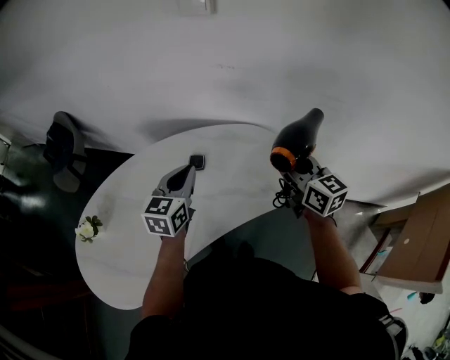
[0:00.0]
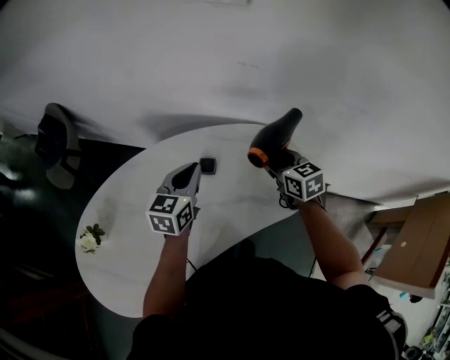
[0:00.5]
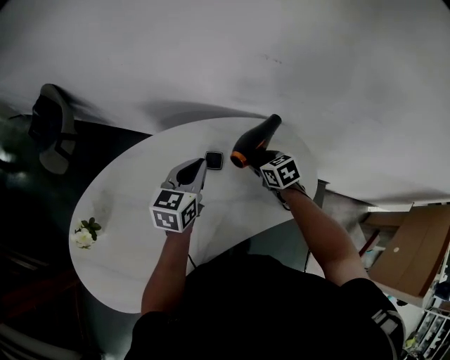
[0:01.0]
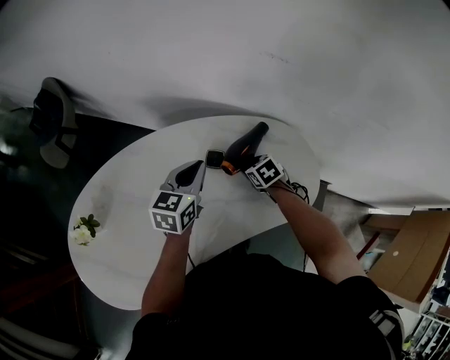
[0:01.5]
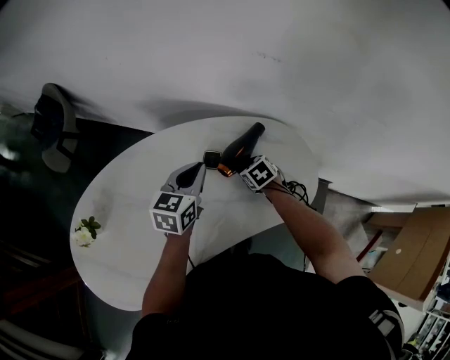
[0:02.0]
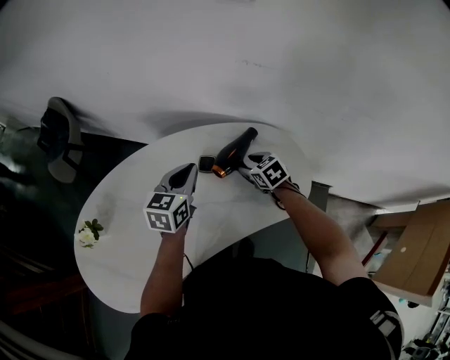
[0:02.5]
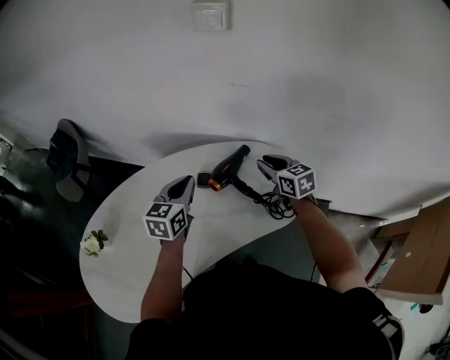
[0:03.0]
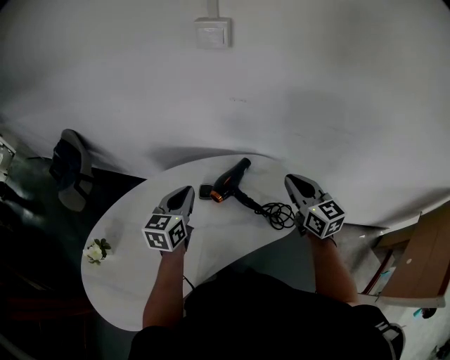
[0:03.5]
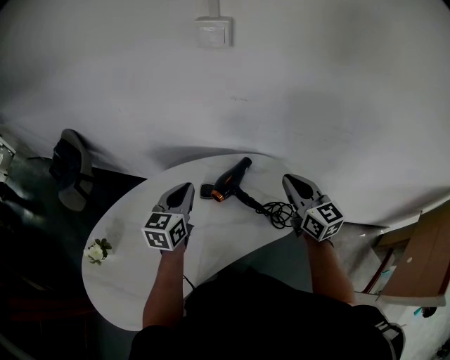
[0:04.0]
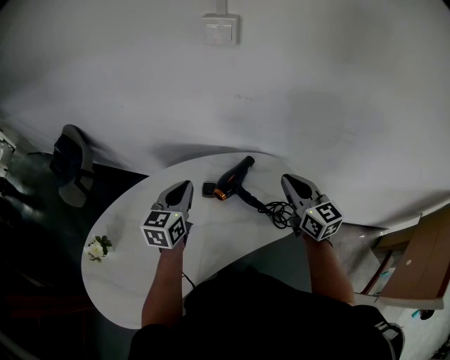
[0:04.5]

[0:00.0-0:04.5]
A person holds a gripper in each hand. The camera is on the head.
0:00.0 to 0:02.0: The right gripper is displaced downward and to the left by roughly 35 cm, and angles its fingers downward, by about 50 degrees; the left gripper heads downward and forward, covering some 10 cm.
0:02.0 to 0:04.5: The right gripper is displaced upward by roughly 30 cm, points its fingers about 60 degrees further upward, and closes; the left gripper is displaced upward by some 10 cm.

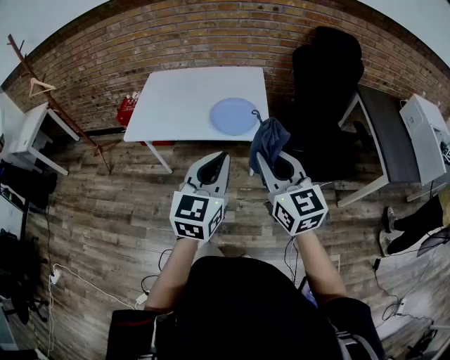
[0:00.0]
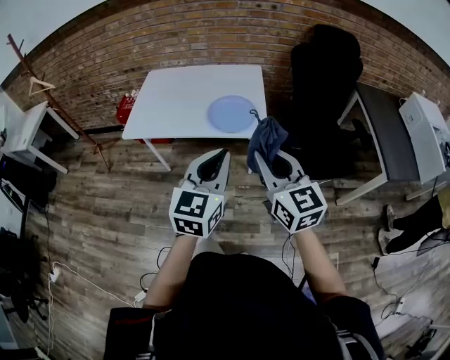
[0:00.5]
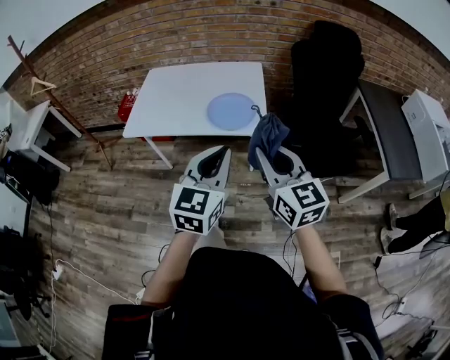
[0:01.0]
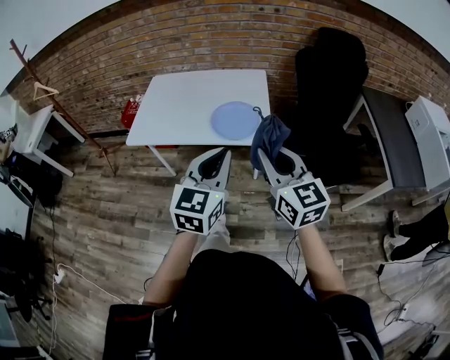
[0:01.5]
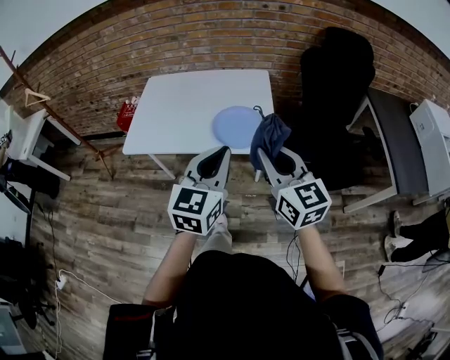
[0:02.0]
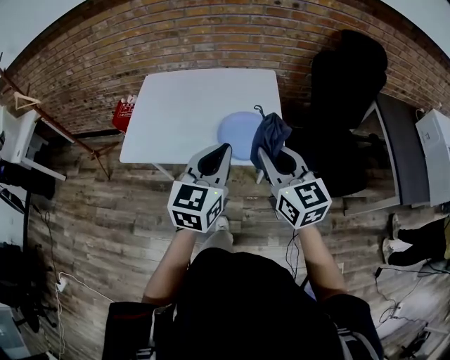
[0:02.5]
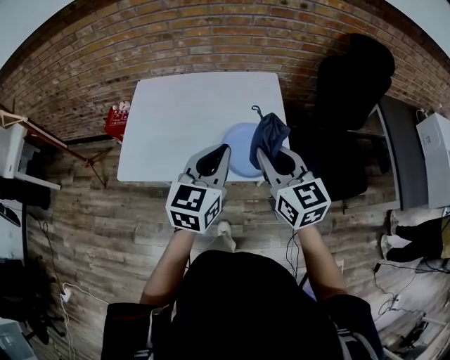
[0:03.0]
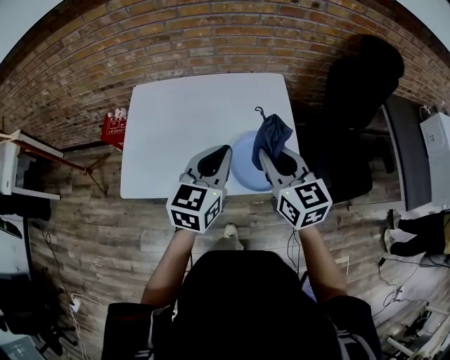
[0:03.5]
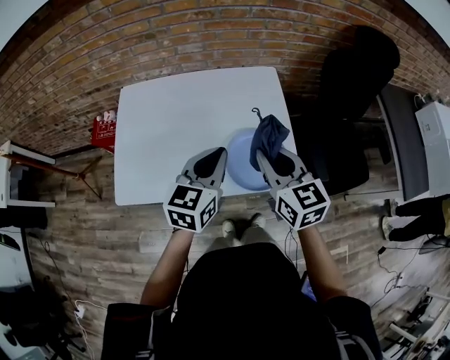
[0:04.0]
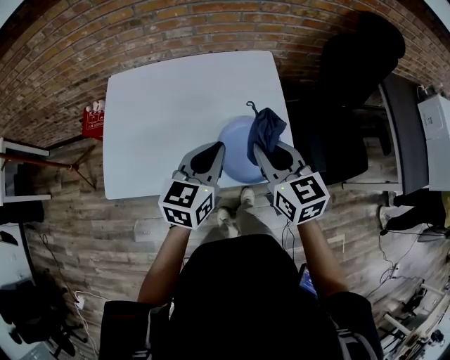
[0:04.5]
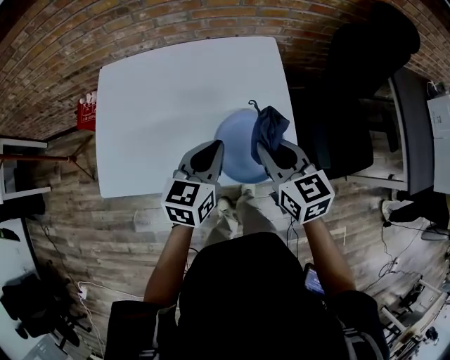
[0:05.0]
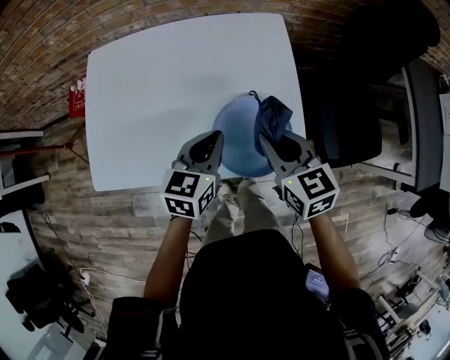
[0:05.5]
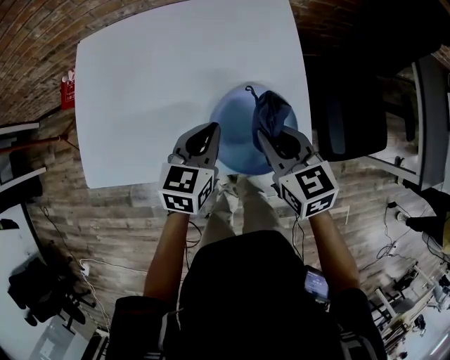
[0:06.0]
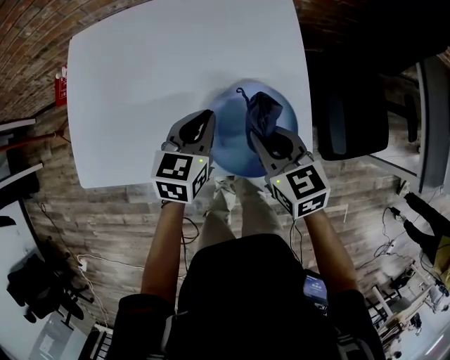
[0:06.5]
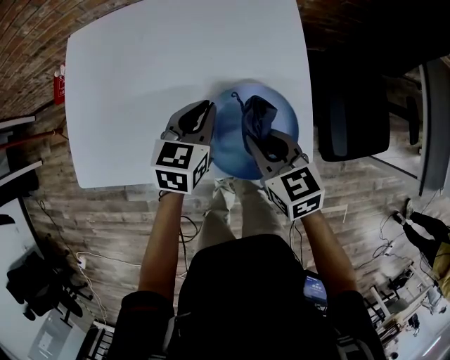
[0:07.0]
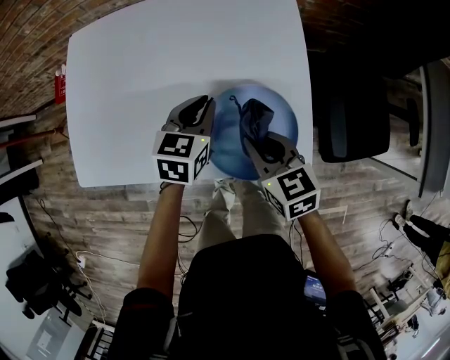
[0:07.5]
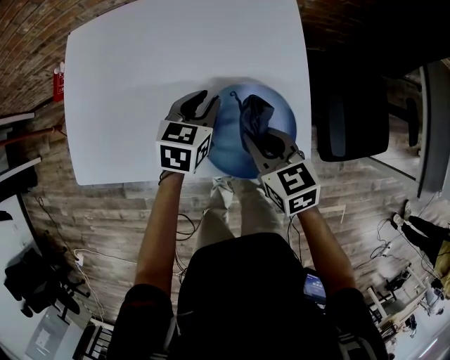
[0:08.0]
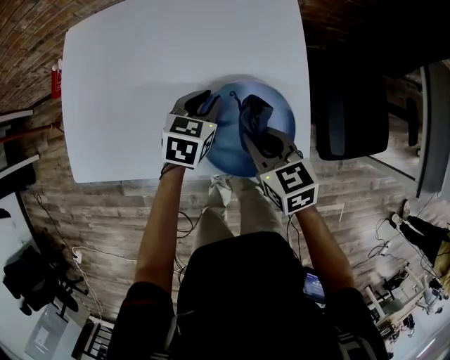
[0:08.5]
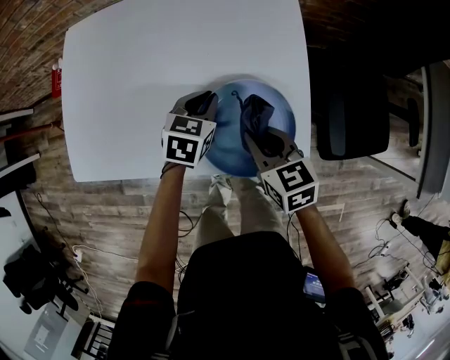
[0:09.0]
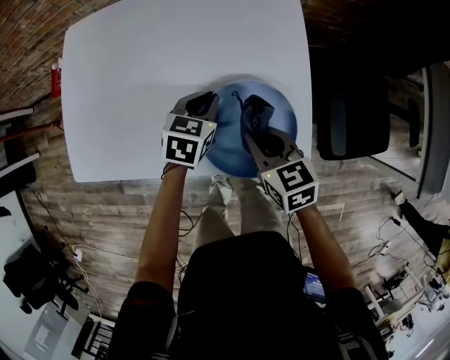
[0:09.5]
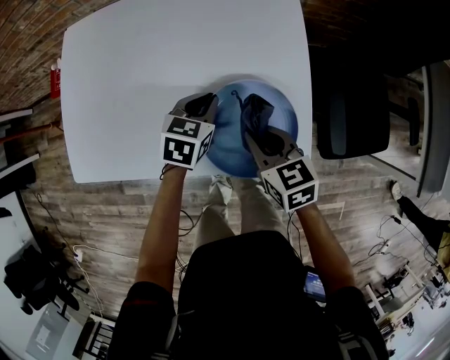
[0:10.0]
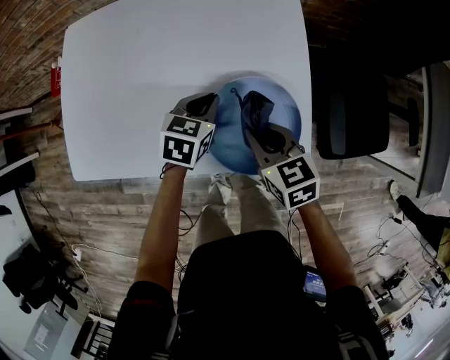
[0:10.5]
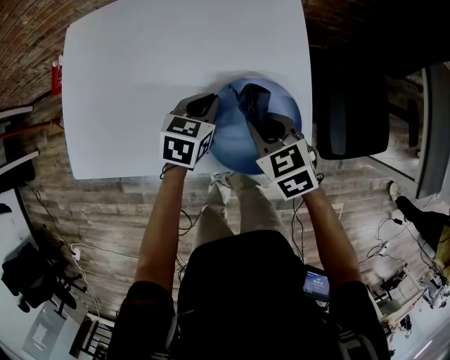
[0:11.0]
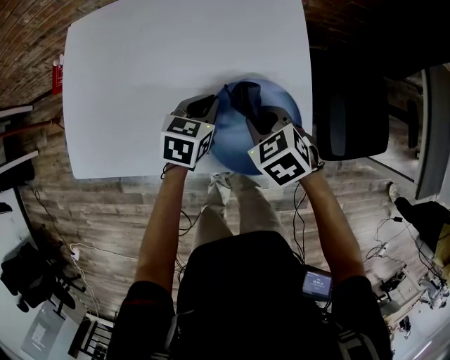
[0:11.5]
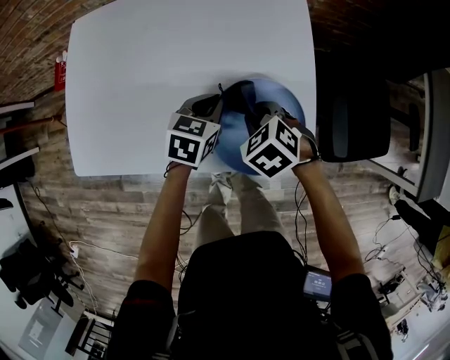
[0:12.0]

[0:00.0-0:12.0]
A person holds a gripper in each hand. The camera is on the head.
0:00.0 to 0:02.0: Both grippers move forward, approximately 10 cm.
0:02.0 to 0:04.0: The two grippers go approximately 30 cm forward and to the left.
0:04.0 to 0:06.0: Both grippers move downward, roughly 20 cm.
0:06.0 to 0:08.0: The left gripper moves forward and downward, about 10 cm, while the right gripper goes roughly 5 cm downward.
0:08.0 to 0:10.0: There are only small adjustments of the grippers.
0:10.0 to 0:12.0: The right gripper swivels some 40 degrees.

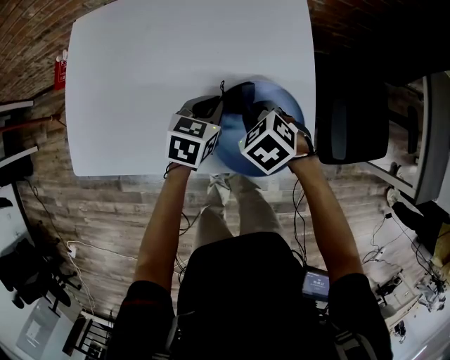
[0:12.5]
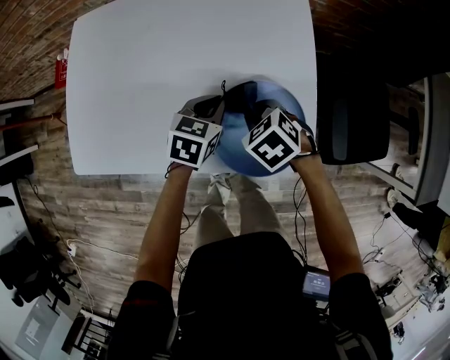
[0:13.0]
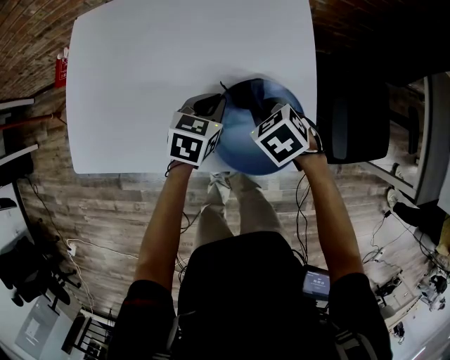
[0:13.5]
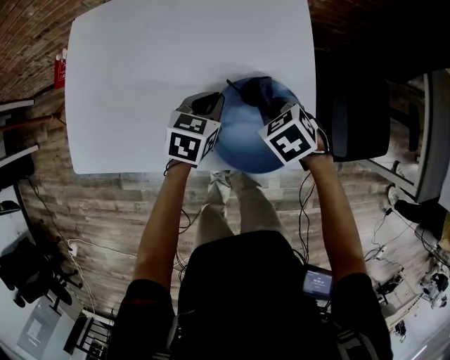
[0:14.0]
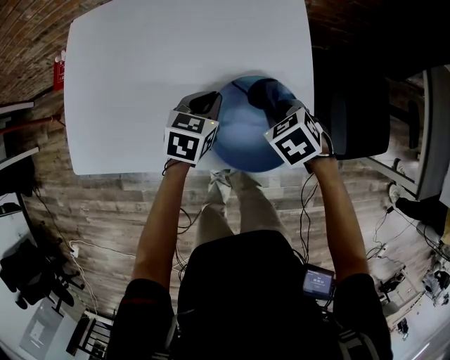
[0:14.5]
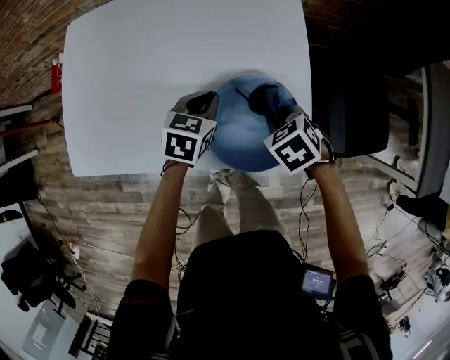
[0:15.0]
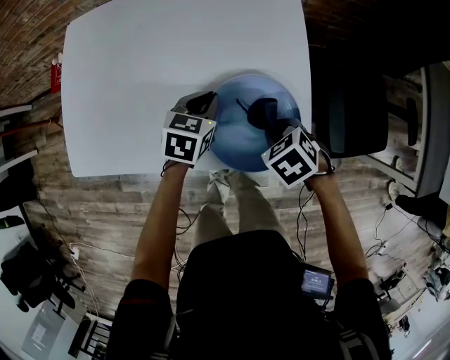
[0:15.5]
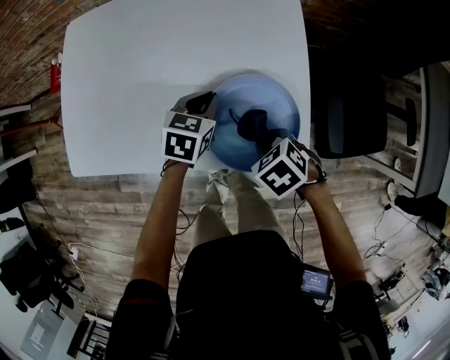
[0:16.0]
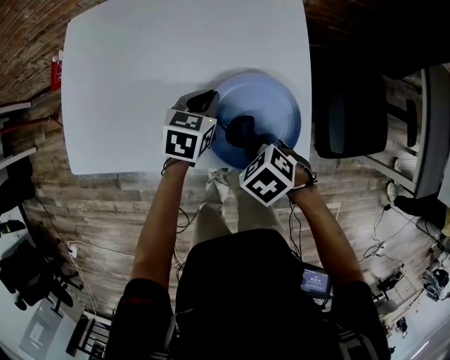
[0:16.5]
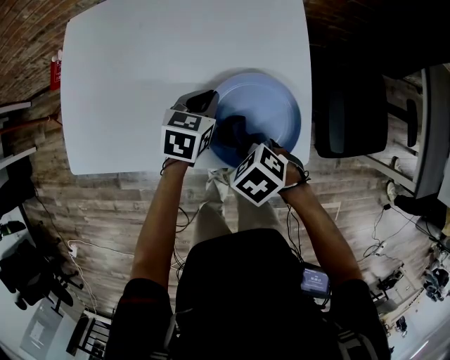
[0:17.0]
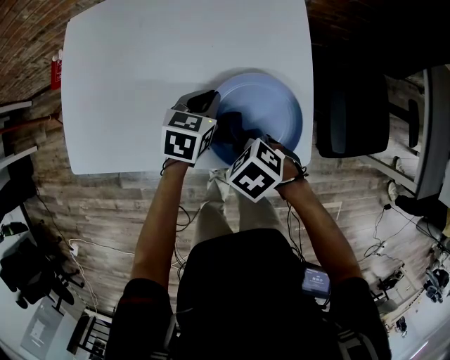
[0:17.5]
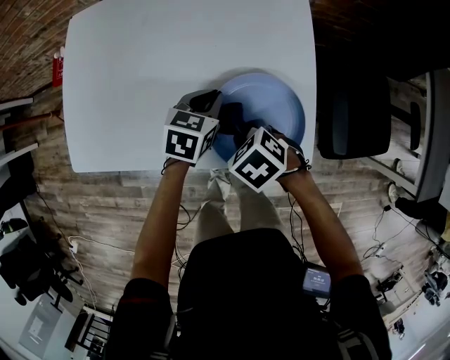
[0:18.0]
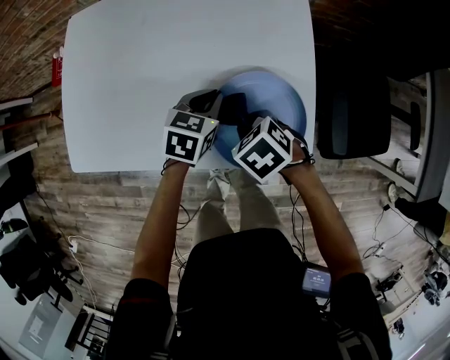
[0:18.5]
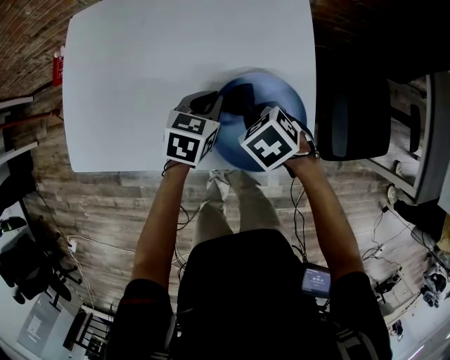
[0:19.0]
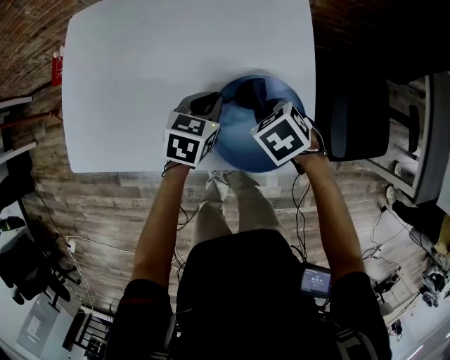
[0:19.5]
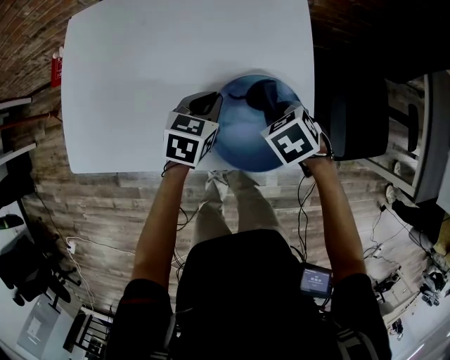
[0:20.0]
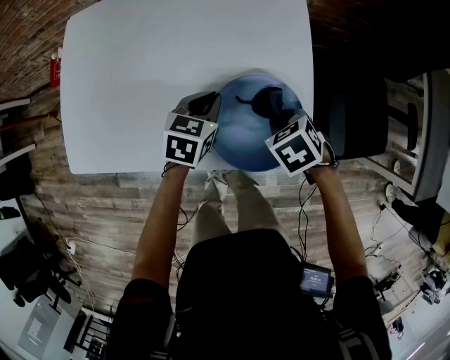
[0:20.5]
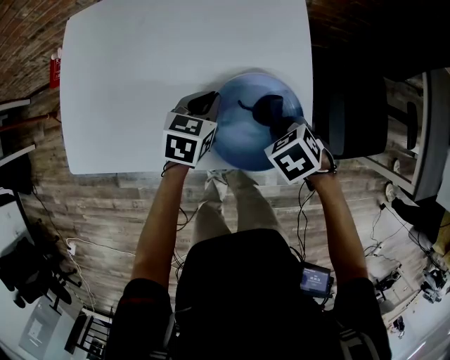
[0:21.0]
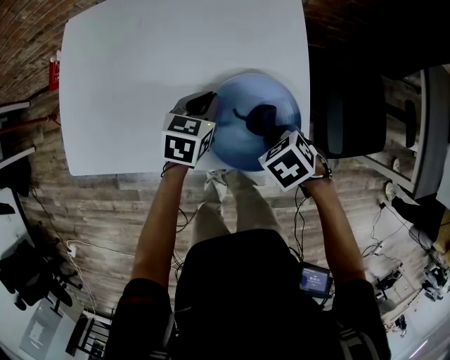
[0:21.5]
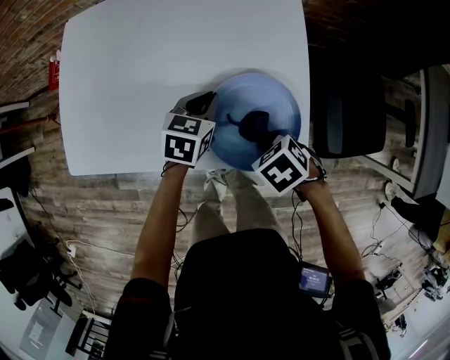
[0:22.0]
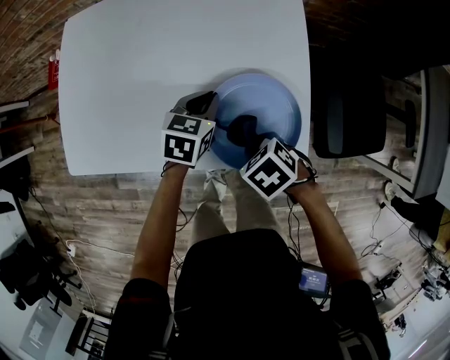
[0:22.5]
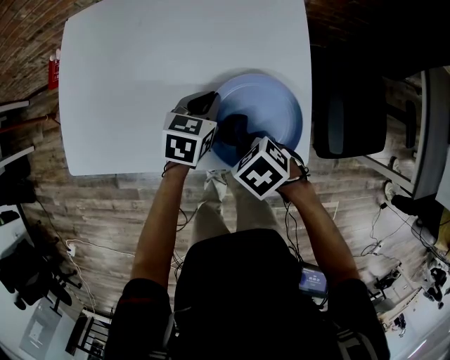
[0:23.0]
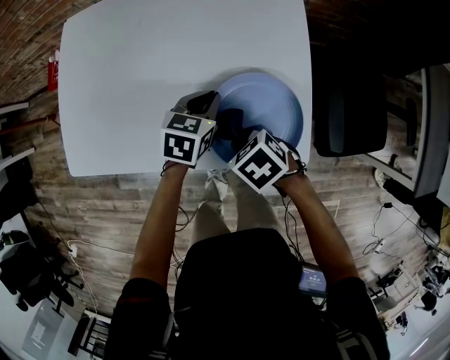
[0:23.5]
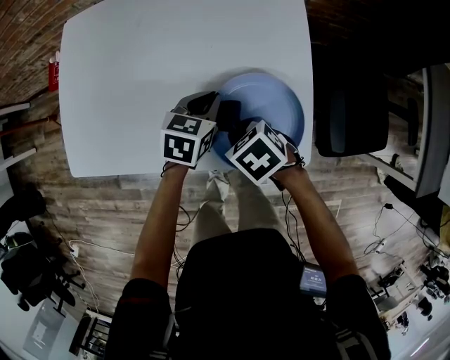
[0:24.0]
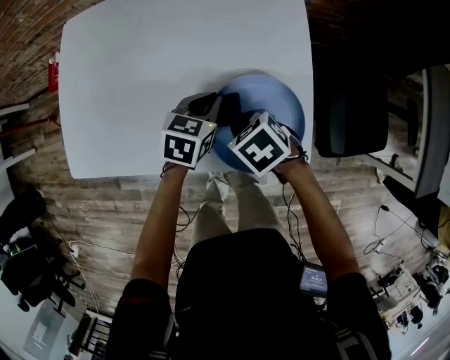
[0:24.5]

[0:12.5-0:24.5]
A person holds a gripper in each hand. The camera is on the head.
0:12.5 to 0:14.5: The right gripper shifts some 5 cm to the right.
0:14.5 to 0:16.5: The right gripper is displaced backward and to the left by roughly 10 cm.
0:16.5 to 0:18.5: The right gripper moves forward, roughly 5 cm.
0:18.5 to 0:20.5: The right gripper moves to the right, some 10 cm.
0:20.5 to 0:22.5: The right gripper moves roughly 10 cm.
0:22.5 to 0:24.5: The right gripper travels forward by about 5 cm.
